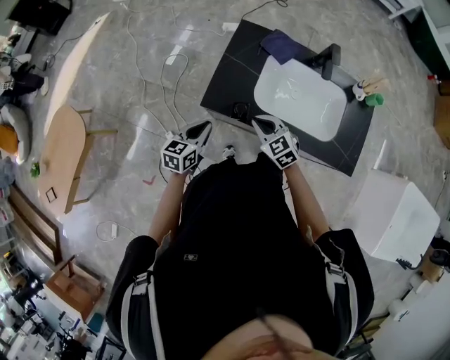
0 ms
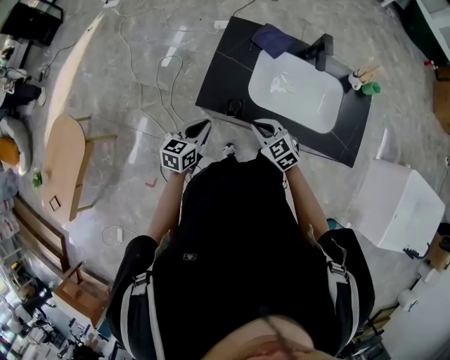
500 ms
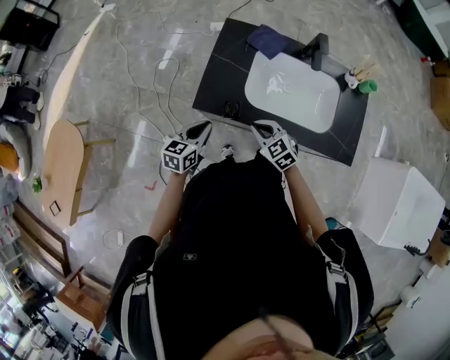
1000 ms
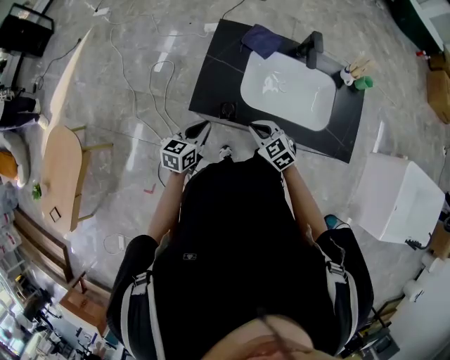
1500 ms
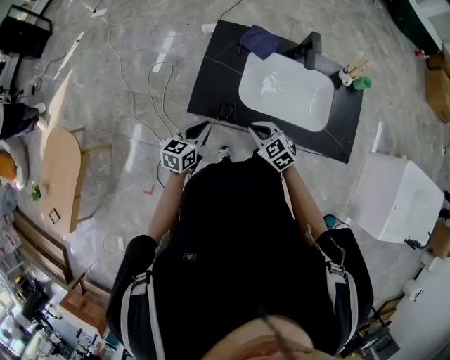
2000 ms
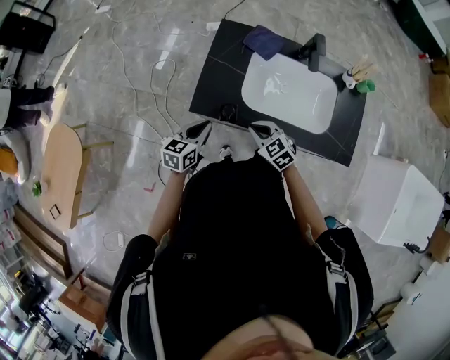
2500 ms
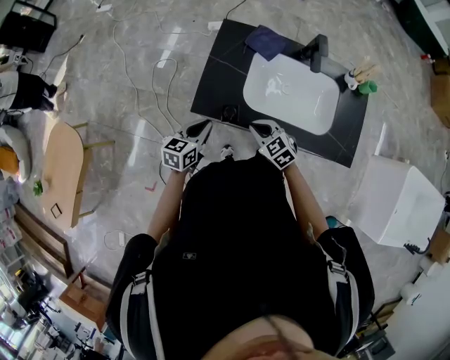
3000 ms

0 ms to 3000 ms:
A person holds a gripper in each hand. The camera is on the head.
0 ms to 3000 ms: The grippers stay close to where they were, moving slightly.

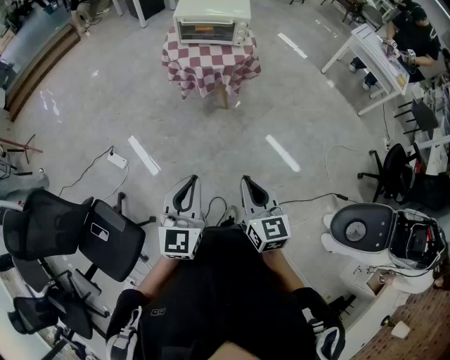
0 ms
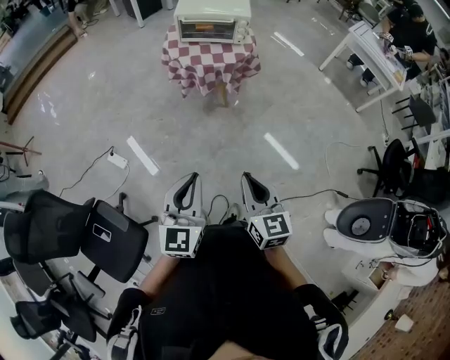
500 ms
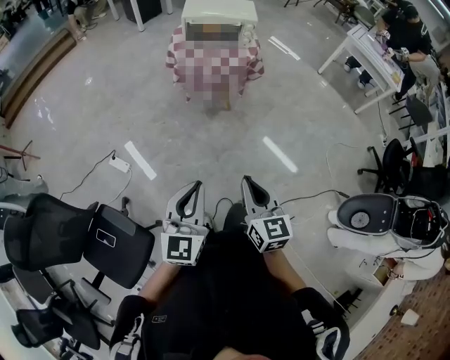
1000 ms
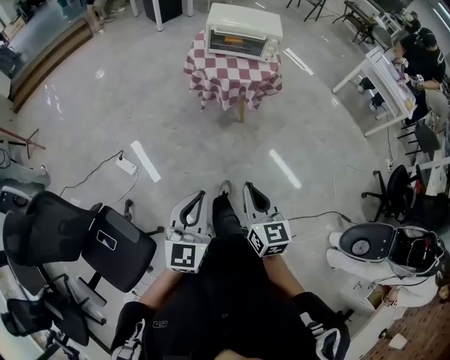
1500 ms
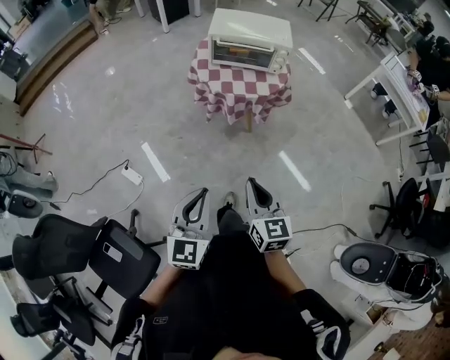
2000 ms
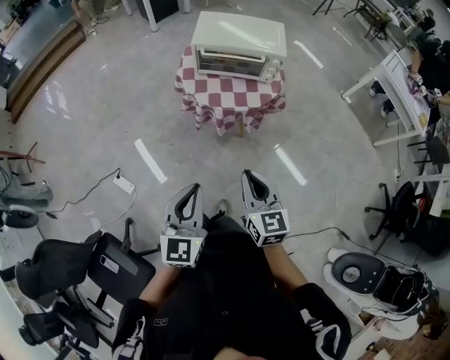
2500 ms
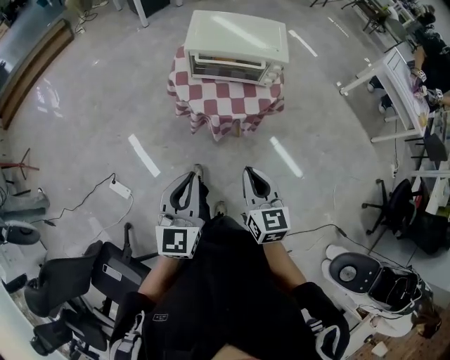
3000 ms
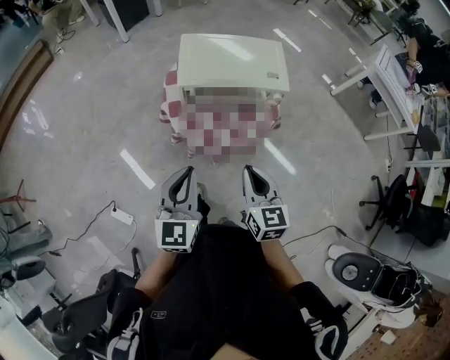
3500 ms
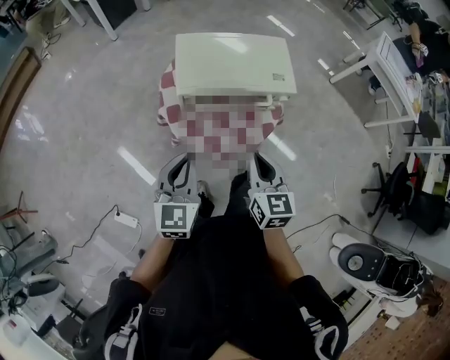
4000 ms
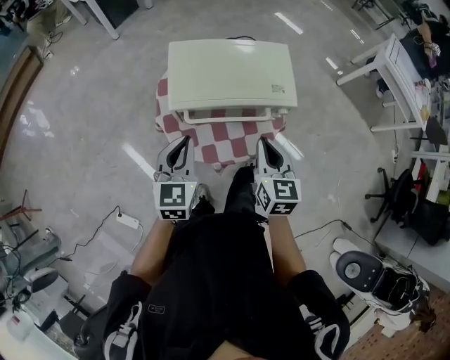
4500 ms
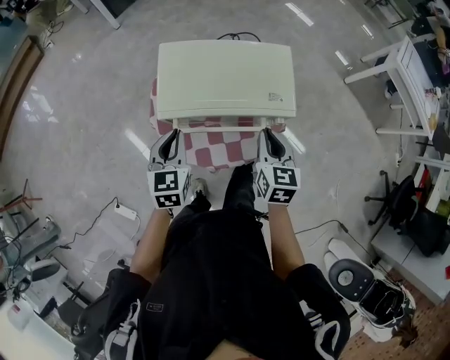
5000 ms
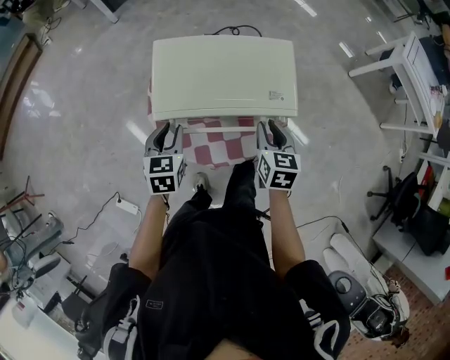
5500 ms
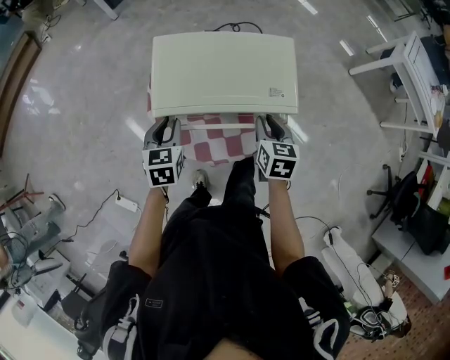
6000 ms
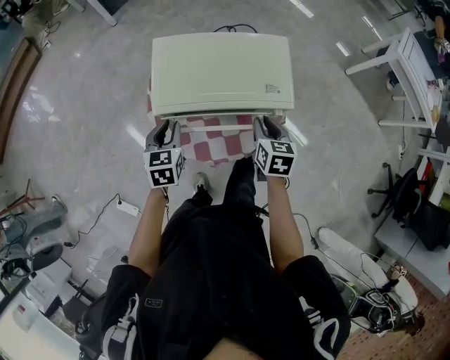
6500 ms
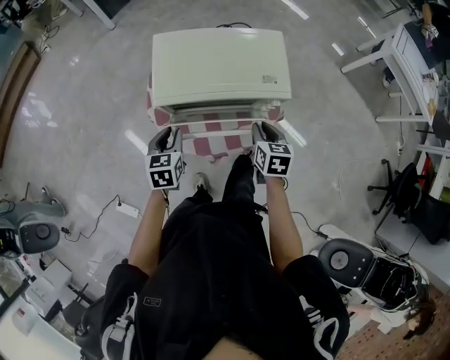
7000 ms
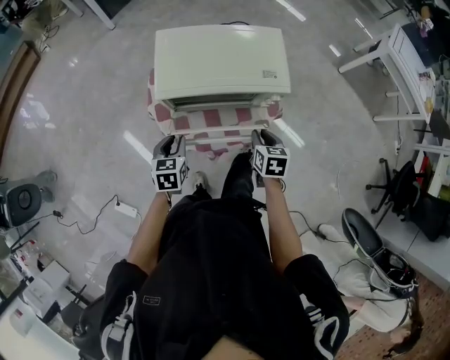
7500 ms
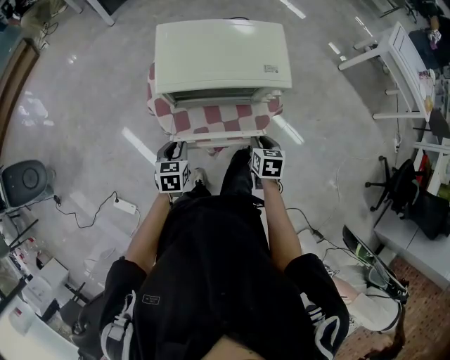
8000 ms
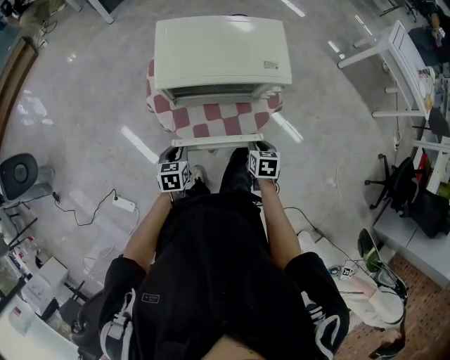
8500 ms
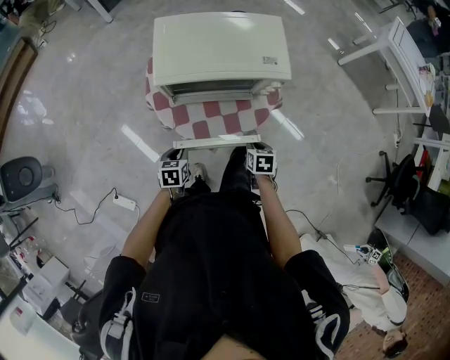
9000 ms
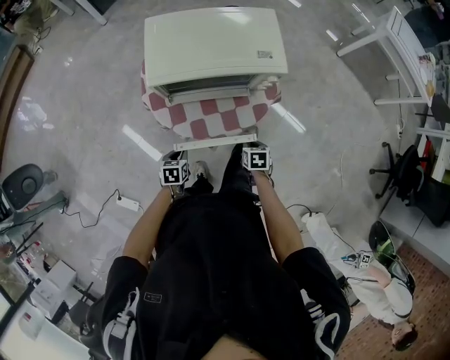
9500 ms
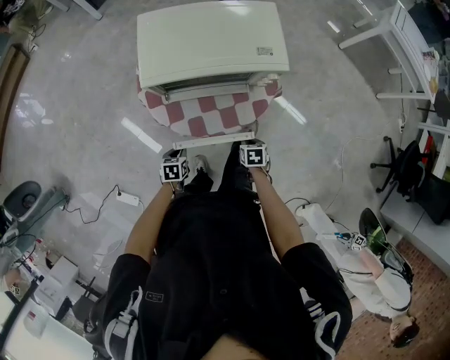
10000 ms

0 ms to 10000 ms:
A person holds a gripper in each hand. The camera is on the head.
0 ms to 2000 ms: Both grippers move forward and to the left, about 20 cm.
2000 ms to 4000 ms: The two grippers travel together, forward, approximately 50 cm.
4000 ms to 6000 ms: The right gripper travels forward, downward and to the right by roughly 25 cm. Meanwhile the left gripper shifts roughly 25 cm forward and downward, rotates about 30 degrees, and opens up.
6000 ms to 8000 ms: Both grippers move backward and downward, about 15 cm.
8000 ms to 10000 ms: The grippers both shift downward by some 15 cm.

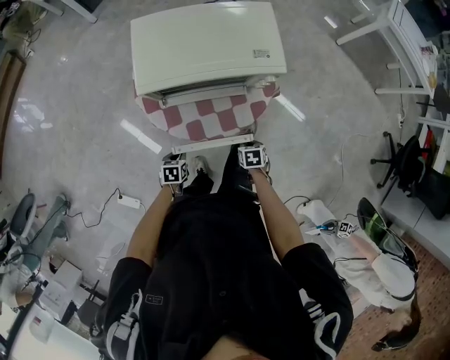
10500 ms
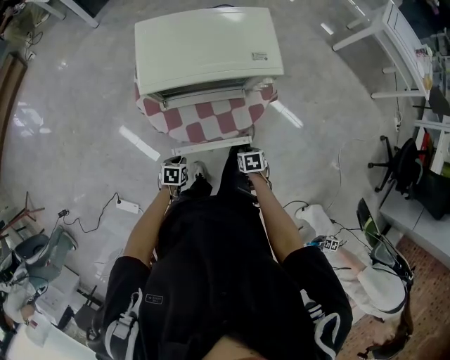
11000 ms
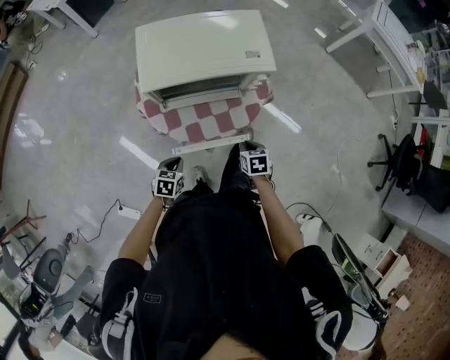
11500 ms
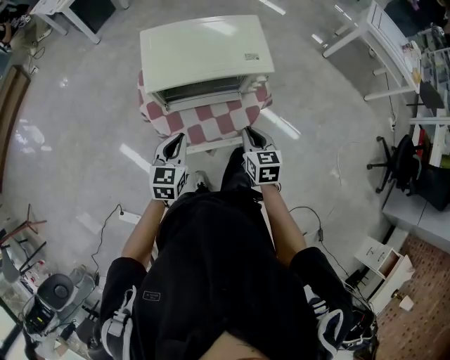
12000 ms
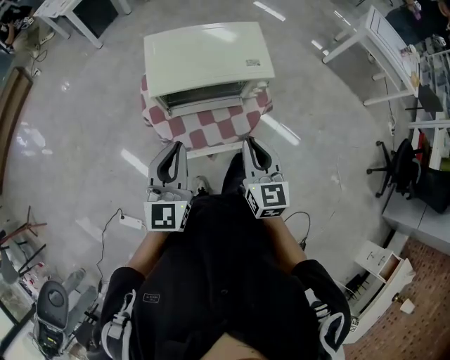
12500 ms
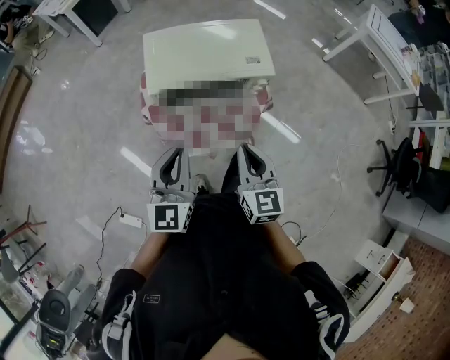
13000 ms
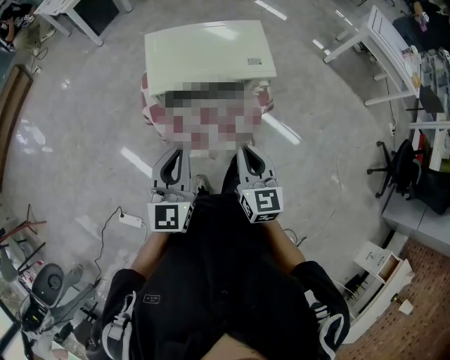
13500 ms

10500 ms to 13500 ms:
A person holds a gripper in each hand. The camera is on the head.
10500 ms to 12000 ms: Both grippers travel together upward, approximately 25 cm. The left gripper tilts its fingers roughly 40 degrees upward. The right gripper tilts its fingers approximately 30 degrees upward.
12000 ms to 13500 ms: The grippers both shift upward by about 15 cm. The right gripper rotates roughly 20 degrees, while the left gripper changes its angle by approximately 20 degrees.

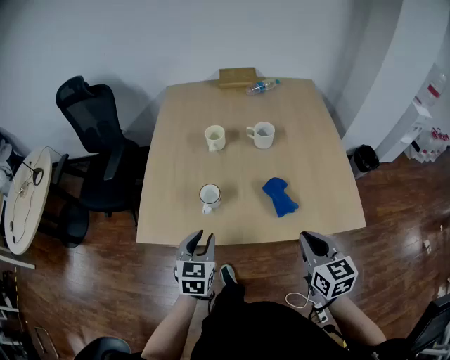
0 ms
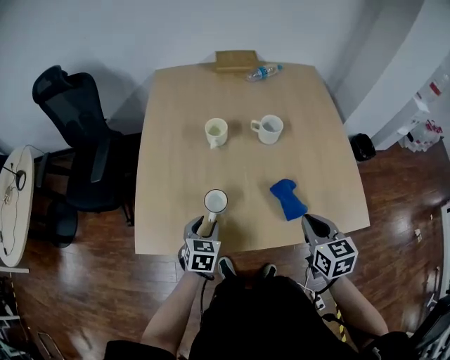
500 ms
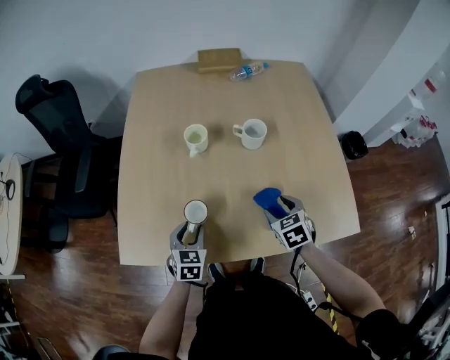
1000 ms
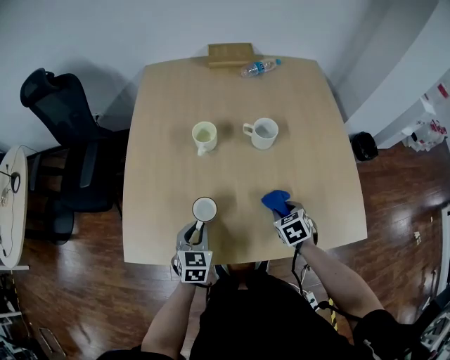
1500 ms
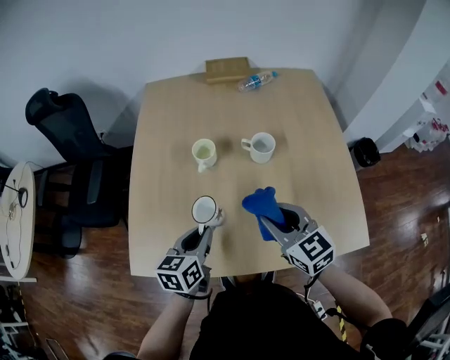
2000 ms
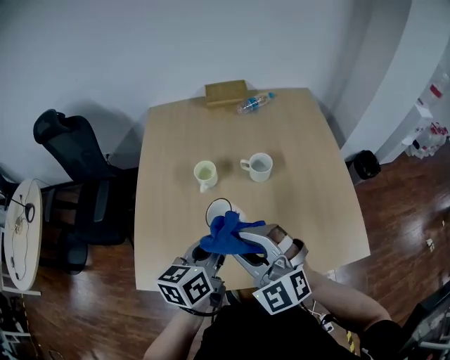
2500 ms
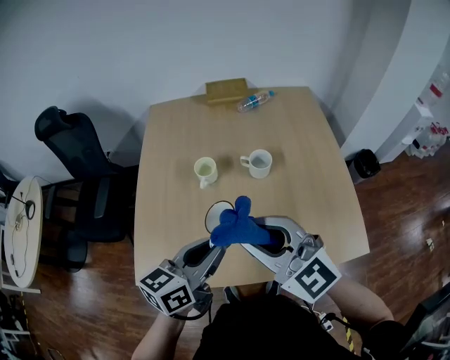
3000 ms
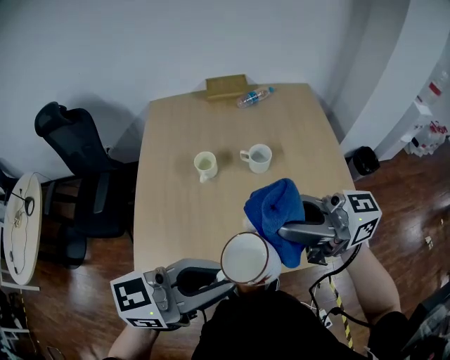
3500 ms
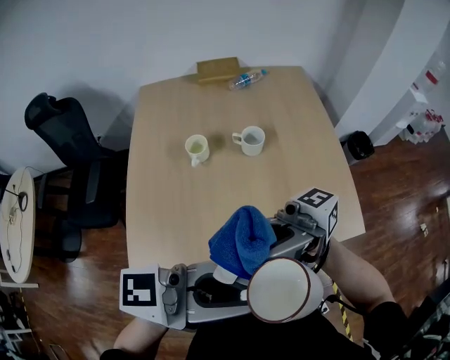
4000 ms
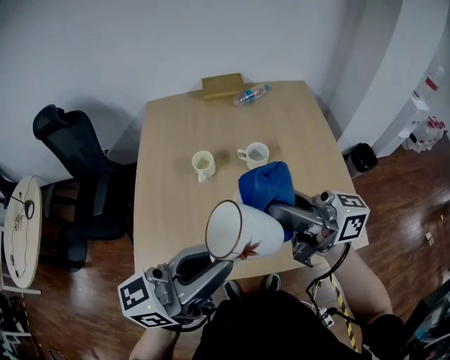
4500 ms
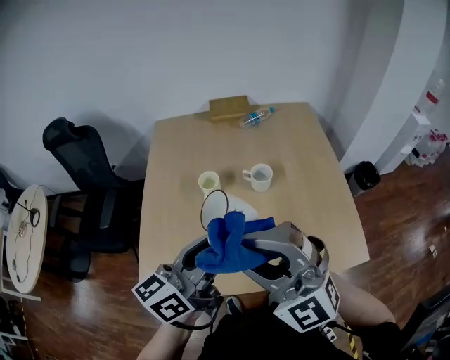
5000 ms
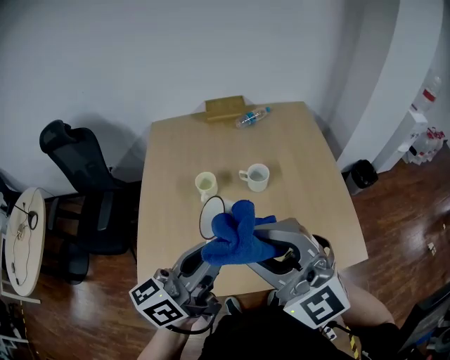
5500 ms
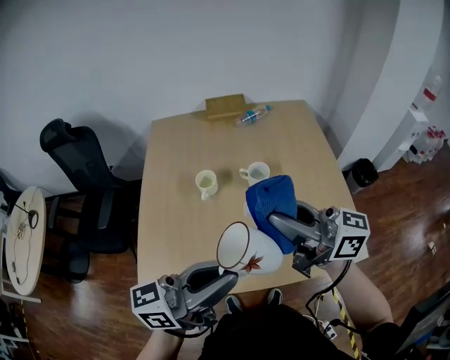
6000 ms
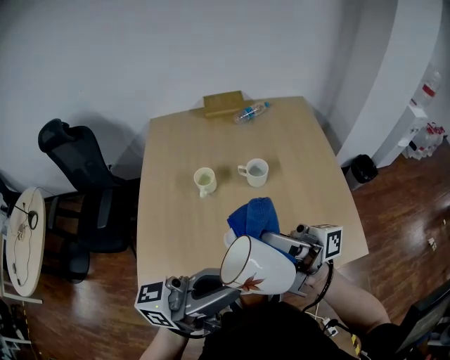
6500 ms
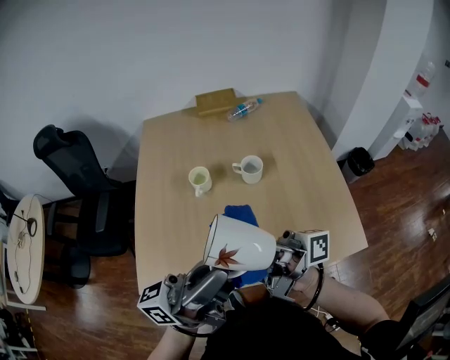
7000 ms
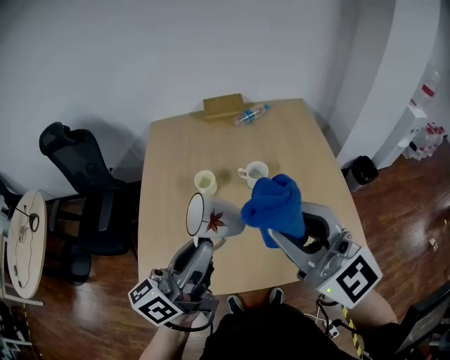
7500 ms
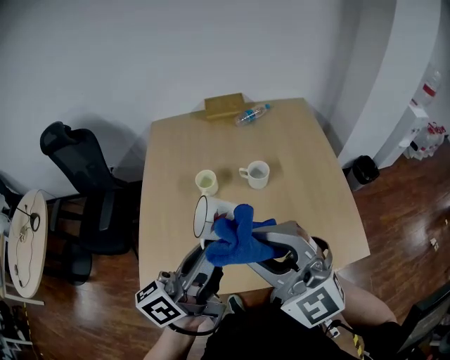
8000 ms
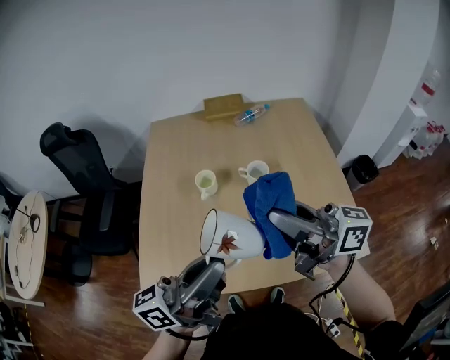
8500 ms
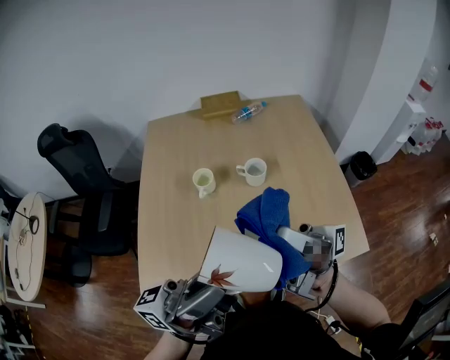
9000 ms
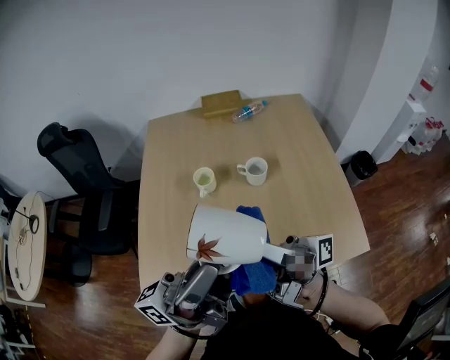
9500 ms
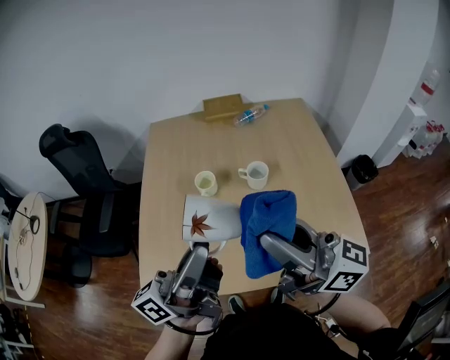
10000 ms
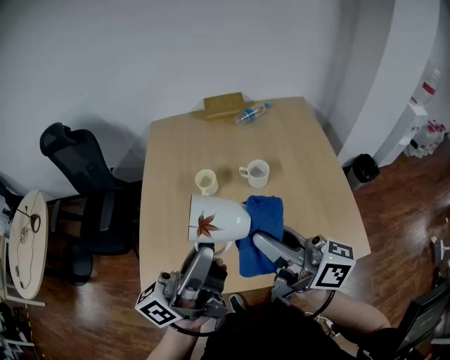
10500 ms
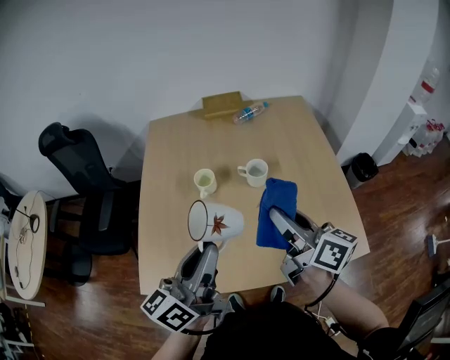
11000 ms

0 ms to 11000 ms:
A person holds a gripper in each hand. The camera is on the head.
0 ms to 2000 ms: The left gripper heads forward, covering roughly 15 cm, and rotates about 20 degrees. Meanwhile the right gripper shifts roughly 25 cm forward and to the left, swivels roughly 20 degrees, and opens its fingers.
2000 ms to 3500 ms: The two grippers go about 25 cm upward. The right gripper tips its fingers upward by about 40 degrees; the left gripper changes its angle by roughly 50 degrees.
3500 ms to 5500 ms: The left gripper ends up about 10 cm from where it was, and turns by some 30 degrees. The right gripper ends up approximately 5 cm from where it was, and rotates around the line of its fingers by some 70 degrees, counterclockwise from behind.
5500 ms to 7500 ms: The right gripper goes downward and returns, some 5 cm each way, and changes its angle by approximately 20 degrees.
7500 ms to 9000 ms: The left gripper is displaced backward by approximately 10 cm, and turns by about 40 degrees; the right gripper twists about 100 degrees clockwise, seen from behind.
9000 ms to 11000 ms: The left gripper shifts approximately 10 cm forward and downward, and points its fingers roughly 30 degrees further downward. Meanwhile the right gripper travels downward and forward by about 10 cm, and tilts its fingers approximately 50 degrees downward.
